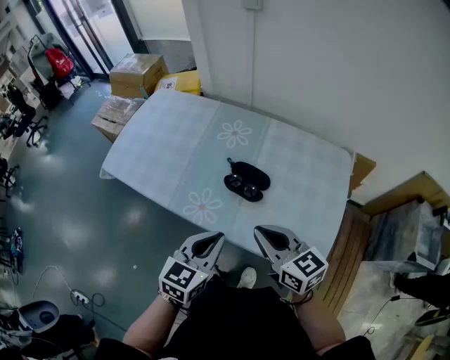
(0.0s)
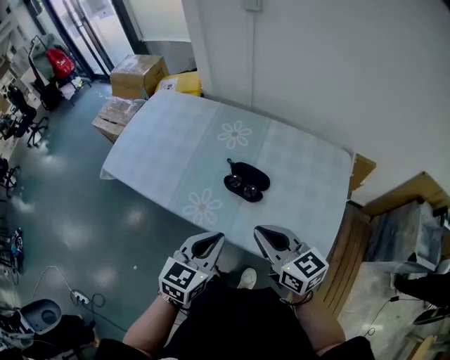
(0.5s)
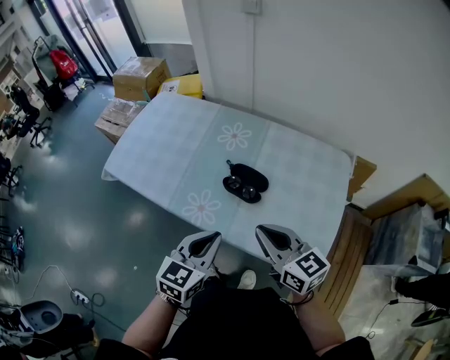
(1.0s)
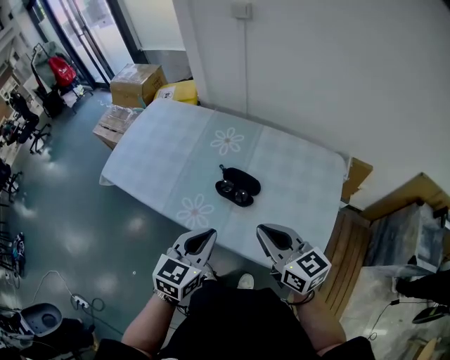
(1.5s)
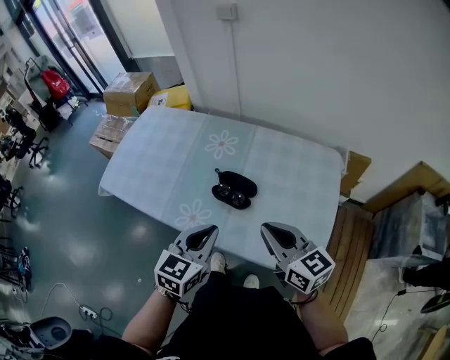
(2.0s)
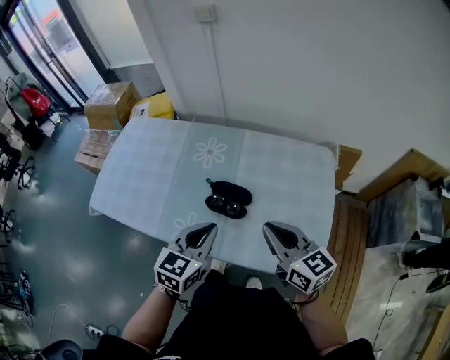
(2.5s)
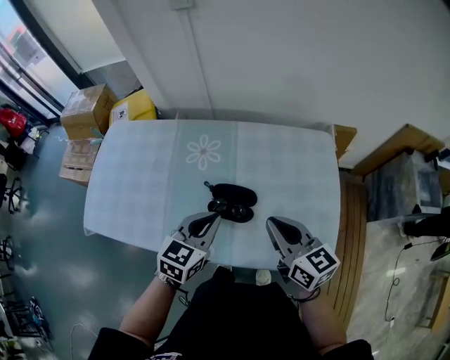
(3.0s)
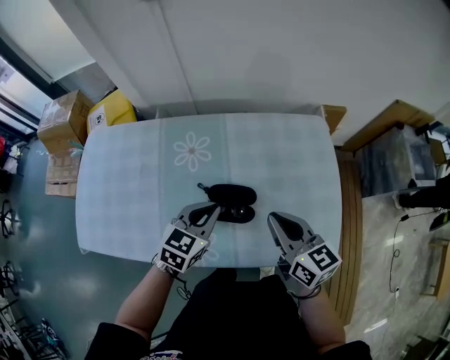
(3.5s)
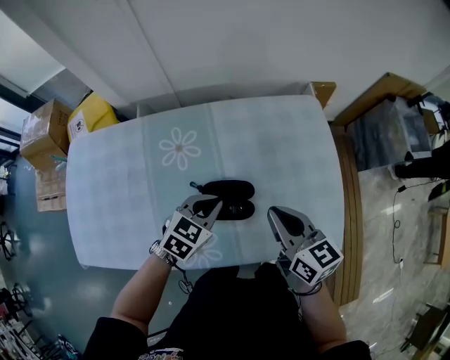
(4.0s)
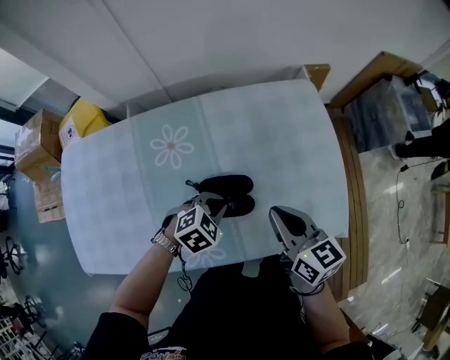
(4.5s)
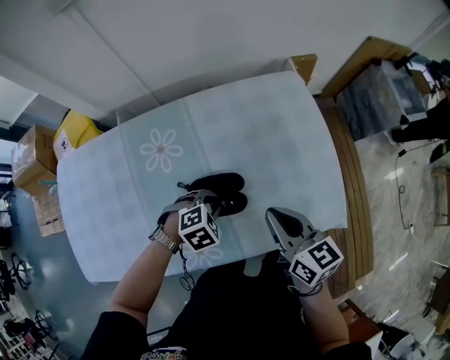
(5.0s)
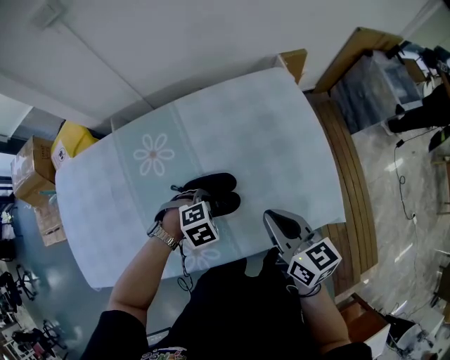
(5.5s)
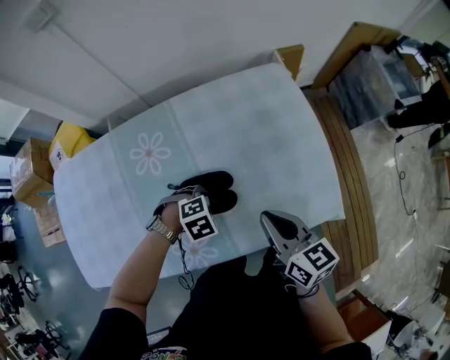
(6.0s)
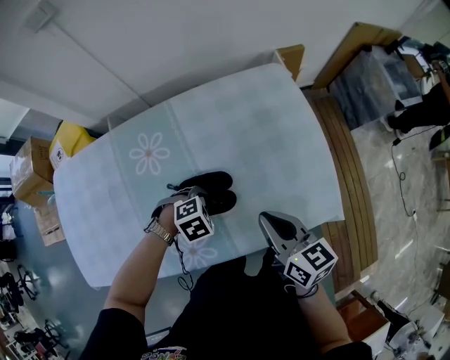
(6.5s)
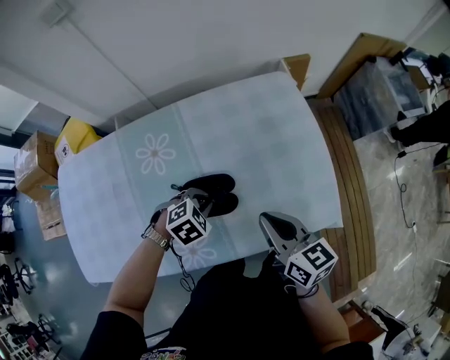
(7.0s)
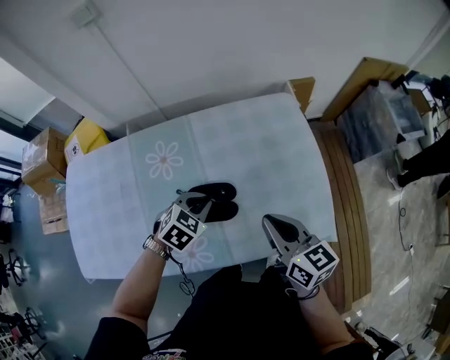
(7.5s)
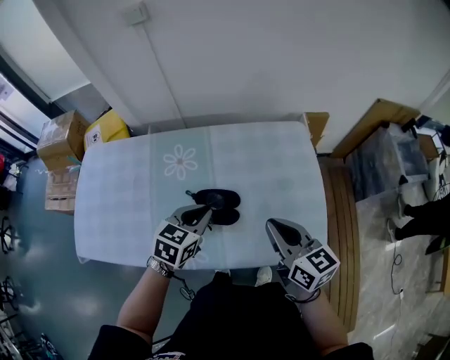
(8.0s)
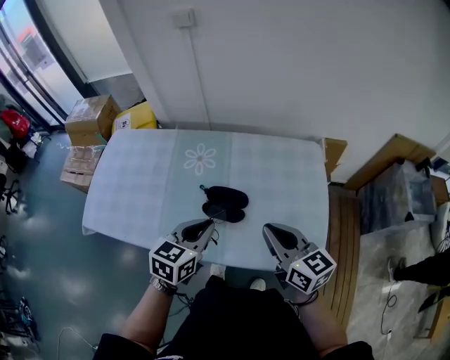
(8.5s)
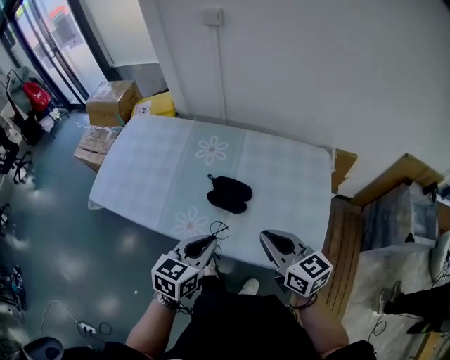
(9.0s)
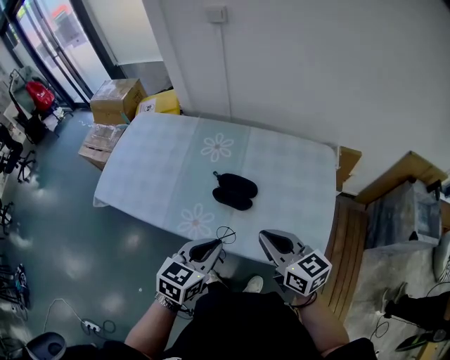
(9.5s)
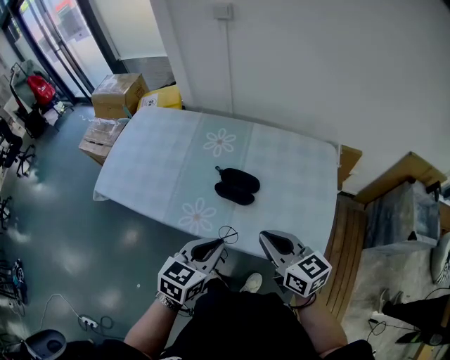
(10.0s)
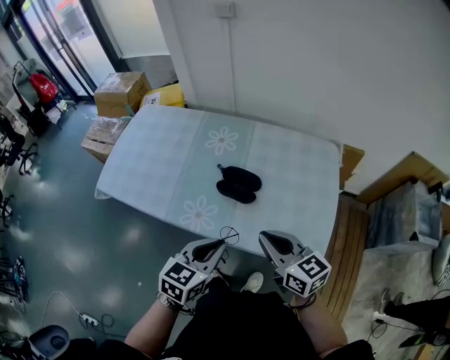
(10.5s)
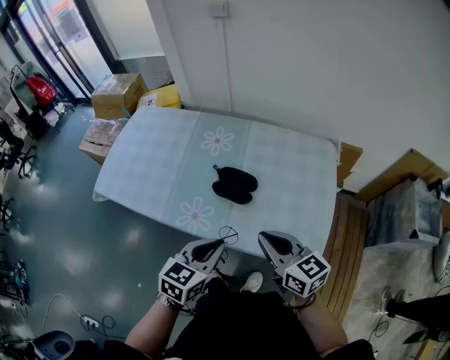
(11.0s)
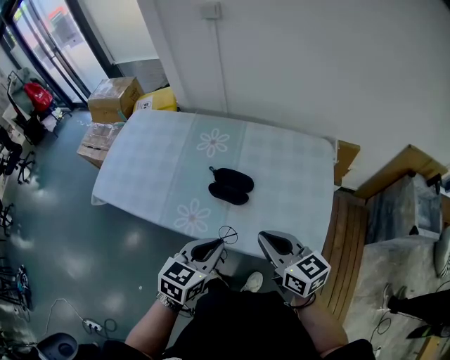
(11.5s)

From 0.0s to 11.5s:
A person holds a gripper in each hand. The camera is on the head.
From 0.0s to 2.0s: The left gripper changes place by approximately 5 cm. The right gripper goes roughly 5 cm to the right.
From 2.0s to 4.0s: The left gripper moves approximately 25 cm, and turns by some 40 degrees, while the right gripper ends up about 15 cm from where it was, and changes its angle by some 40 degrees.
From 4.0s to 6.0s: The right gripper shifts by some 5 cm; the left gripper is displaced downward by approximately 10 cm, and tips its fingers downward by about 40 degrees.
From 6.0s to 7.5s: The left gripper moves upward, about 10 cm, and changes its angle by approximately 40 degrees.
From 7.5s to 9.5s: The left gripper moves roughly 25 cm, and rotates approximately 50 degrees. The right gripper changes place by roughly 10 cm, and changes its angle by roughly 40 degrees.
From 9.5s to 11.5s: The grippers stay close to where they were, moving slightly.

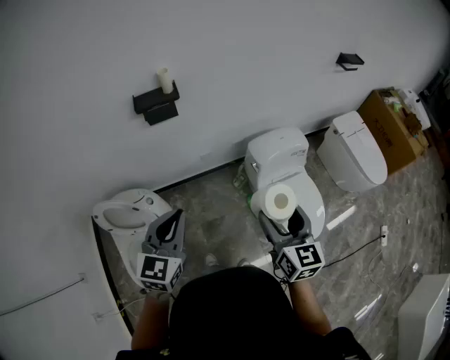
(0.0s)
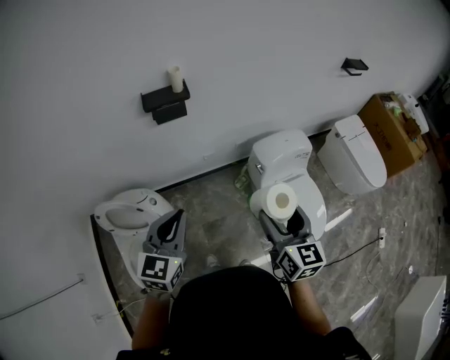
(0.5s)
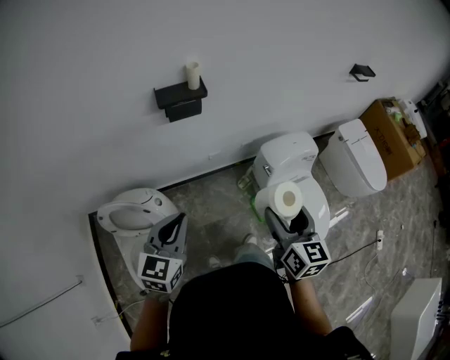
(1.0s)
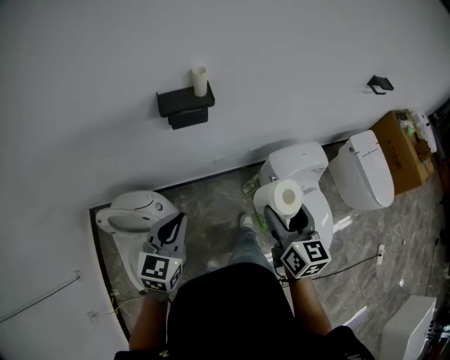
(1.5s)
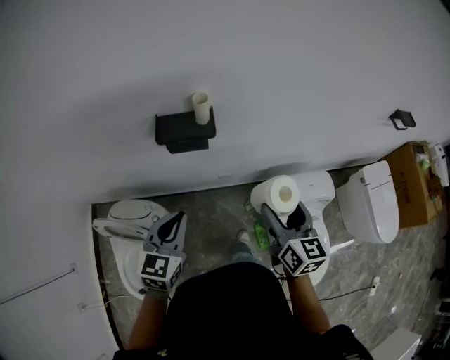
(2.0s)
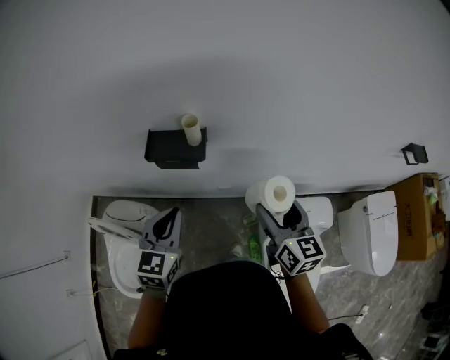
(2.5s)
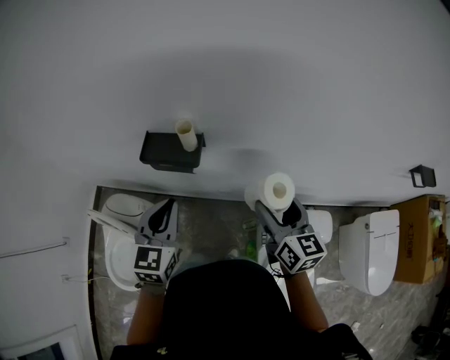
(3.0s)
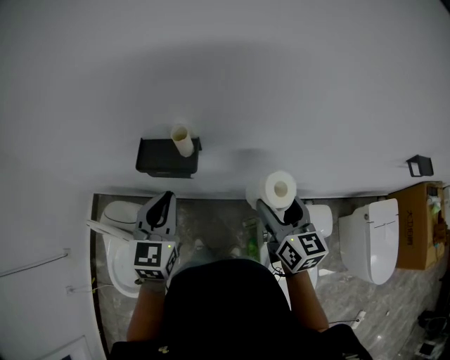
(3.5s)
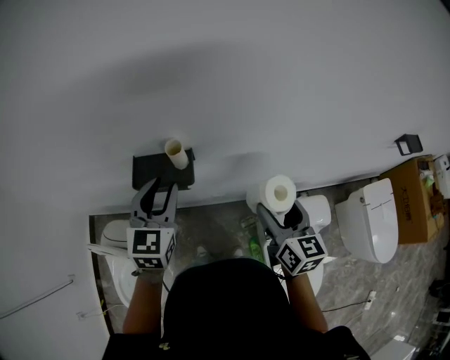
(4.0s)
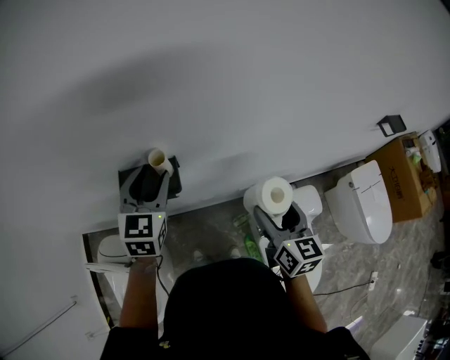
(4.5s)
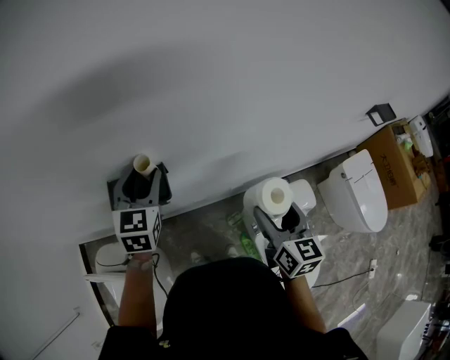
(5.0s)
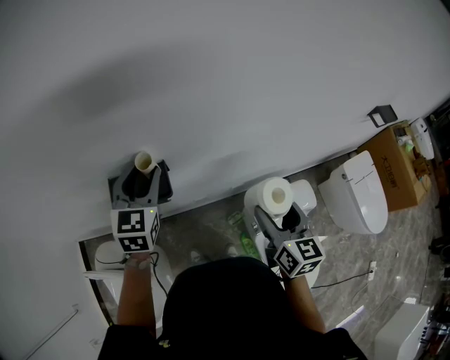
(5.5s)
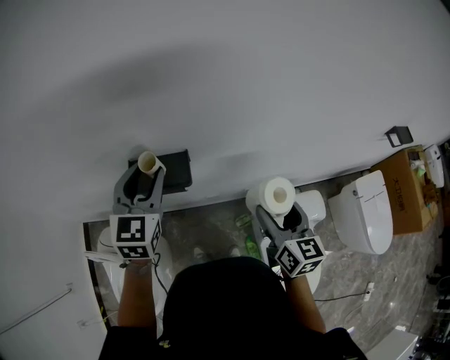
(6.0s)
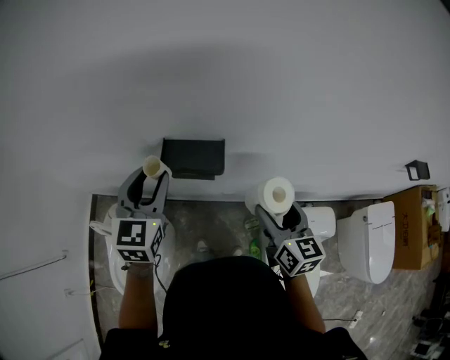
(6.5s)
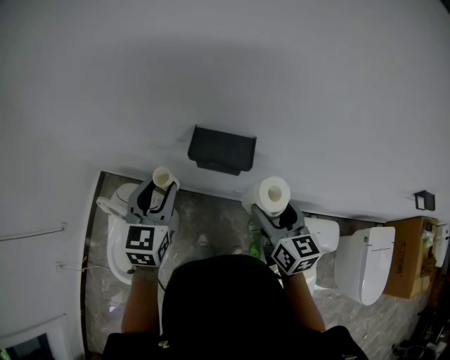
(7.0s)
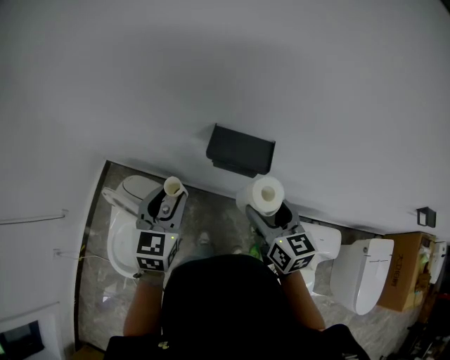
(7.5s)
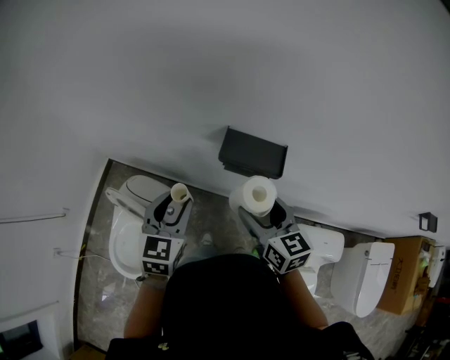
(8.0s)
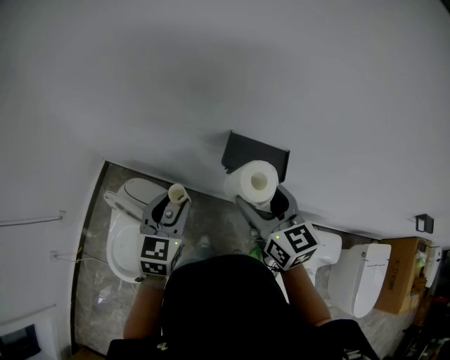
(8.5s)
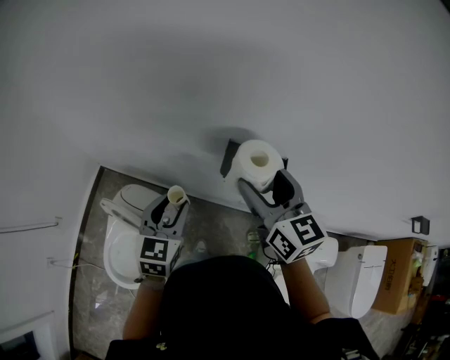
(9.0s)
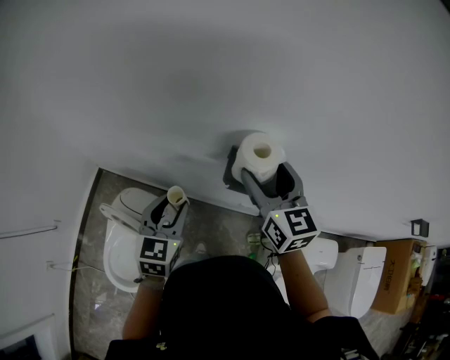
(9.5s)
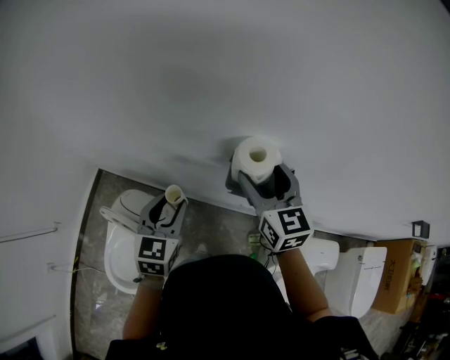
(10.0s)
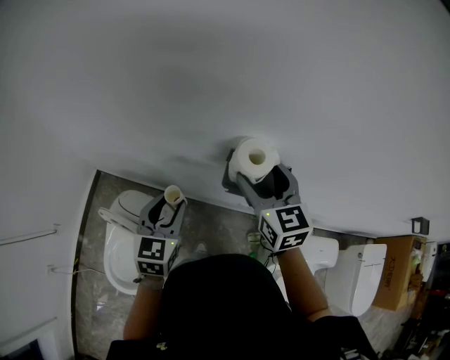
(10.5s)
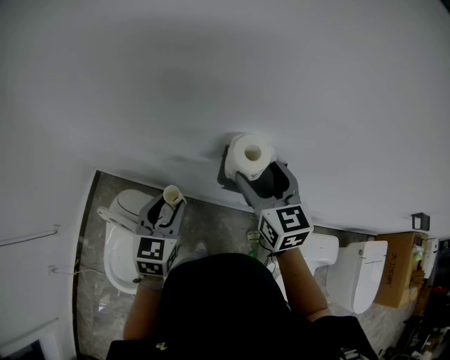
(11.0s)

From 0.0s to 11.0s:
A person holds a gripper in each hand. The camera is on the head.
From 0.0s to 2.0s: The left gripper goes some 20 cm forward and to the left, while the right gripper travels forward by roughly 25 cm.
From 2.0s to 3.5s: Both grippers travel together forward and to the right, some 15 cm.
From 3.5s to 5.5s: The left gripper moves forward, some 15 cm, and opens its fingers, while the right gripper shifts by approximately 5 cm, and changes its angle by roughly 20 degrees.
From 5.5s to 7.5s: The right gripper ends up about 25 cm from where it was, and turns by about 40 degrees. The left gripper changes place by approximately 30 cm, and rotates roughly 30 degrees.
From 7.5s to 9.0s: The right gripper travels upward, forward and to the left by some 15 cm, while the left gripper ends up about 5 cm from where it was.
From 9.0s to 11.0s: The right gripper changes place by approximately 5 cm.

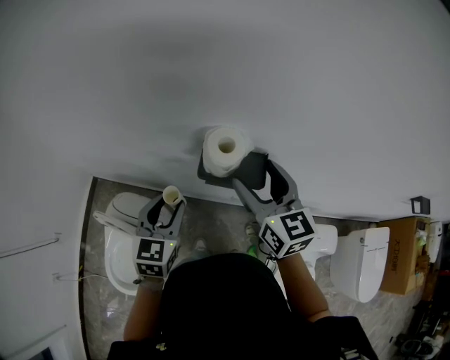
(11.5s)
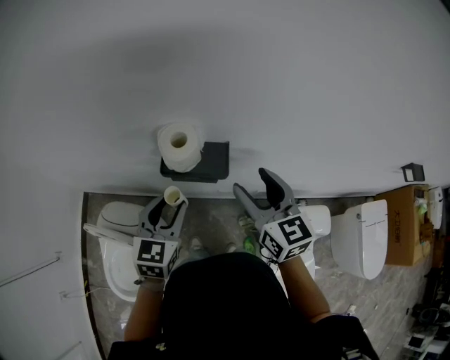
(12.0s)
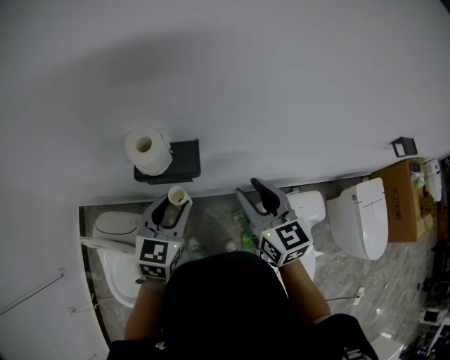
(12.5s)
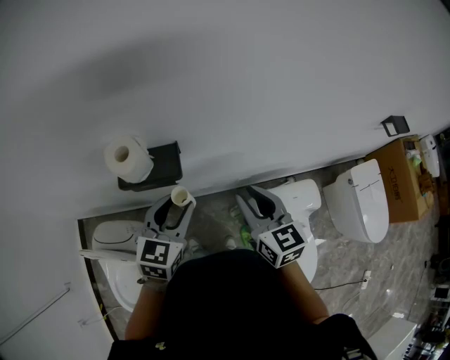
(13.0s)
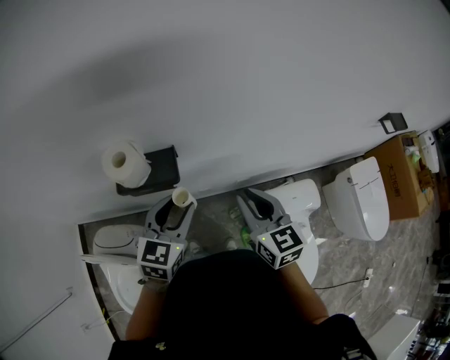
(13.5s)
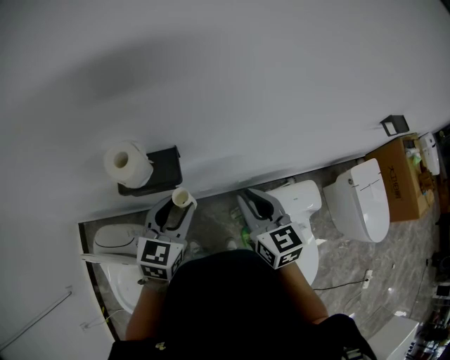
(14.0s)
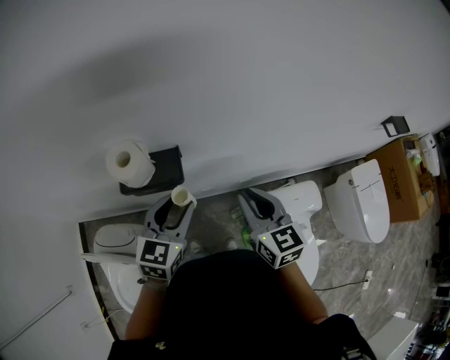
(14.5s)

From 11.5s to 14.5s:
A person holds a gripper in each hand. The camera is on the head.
From 11.5s to 13.0s: The right gripper heads to the right and backward, covering approximately 20 cm, and closes up. The left gripper shifts some 20 cm to the right, and changes its angle by roughly 20 degrees.
From 13.0s to 14.5s: Both grippers stay put.

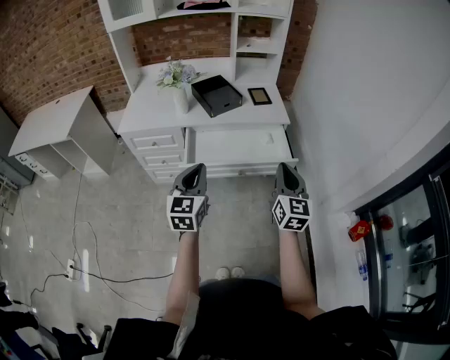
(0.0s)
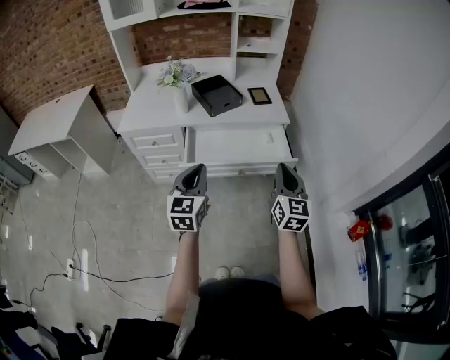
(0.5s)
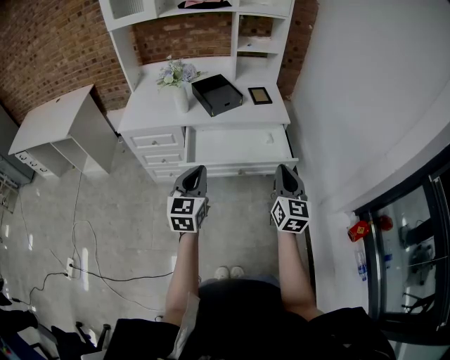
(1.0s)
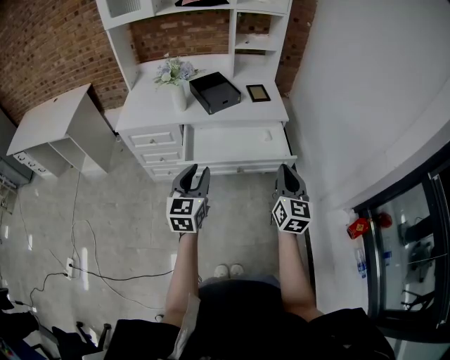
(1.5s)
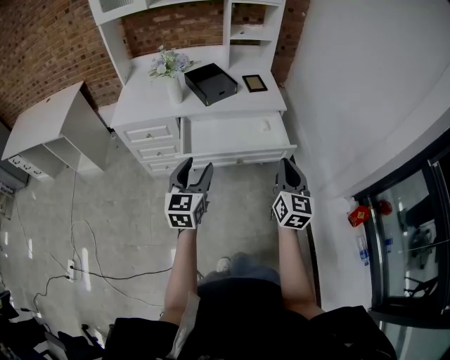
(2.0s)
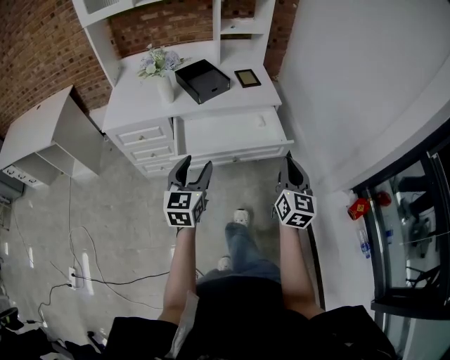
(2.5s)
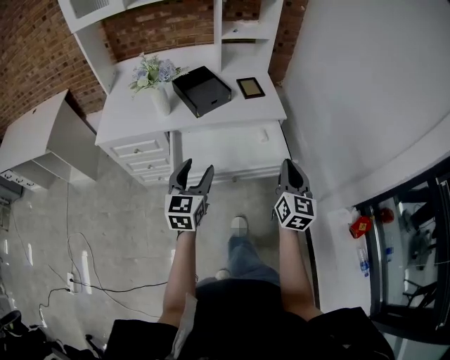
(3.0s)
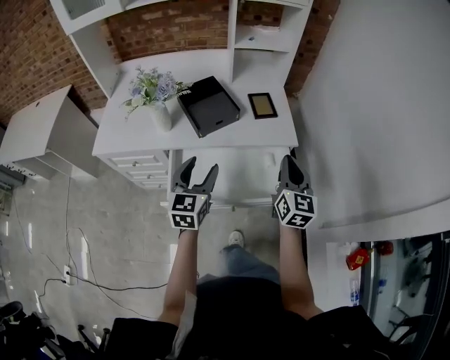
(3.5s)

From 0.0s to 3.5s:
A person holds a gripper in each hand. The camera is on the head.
From 0.0s to 2.0s: The left gripper opens its fingers.
From 2.0s to 3.5s: The two grippers go some 30 cm forward.
